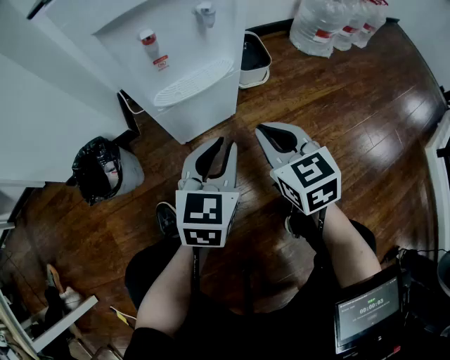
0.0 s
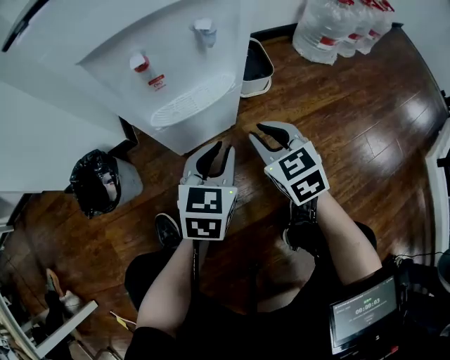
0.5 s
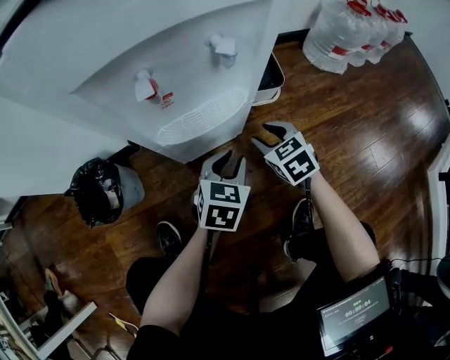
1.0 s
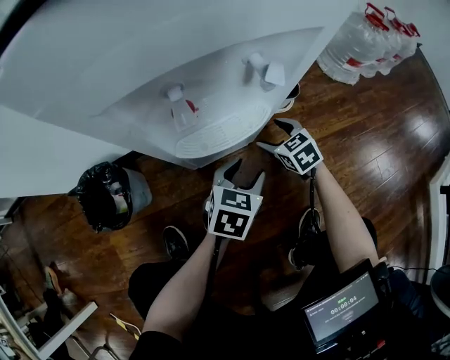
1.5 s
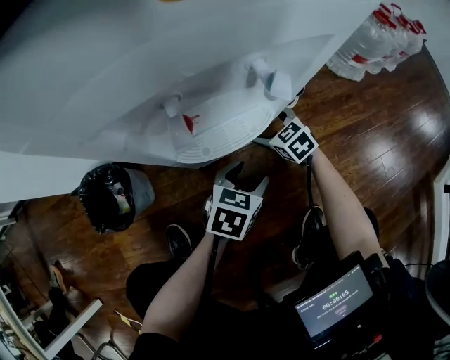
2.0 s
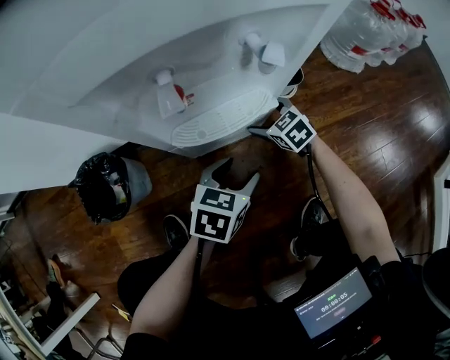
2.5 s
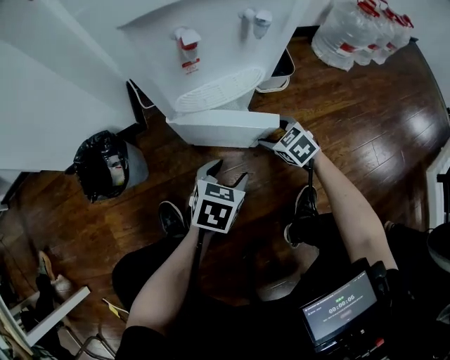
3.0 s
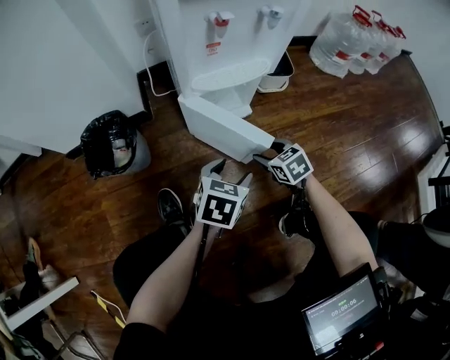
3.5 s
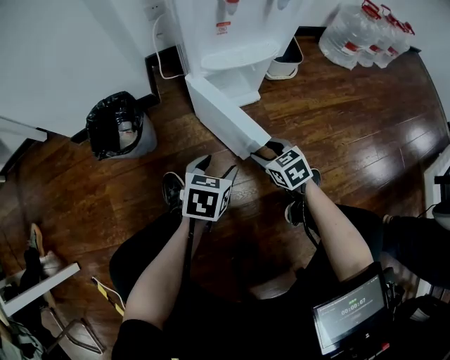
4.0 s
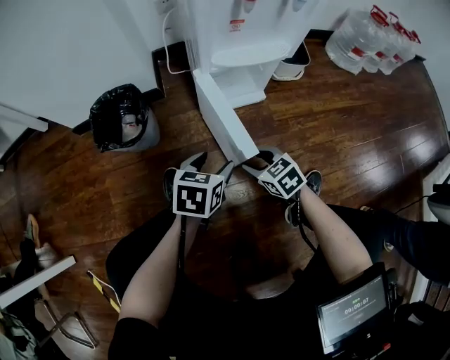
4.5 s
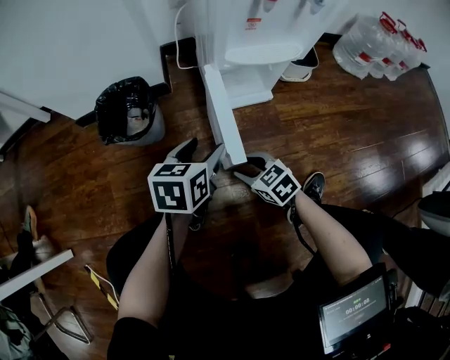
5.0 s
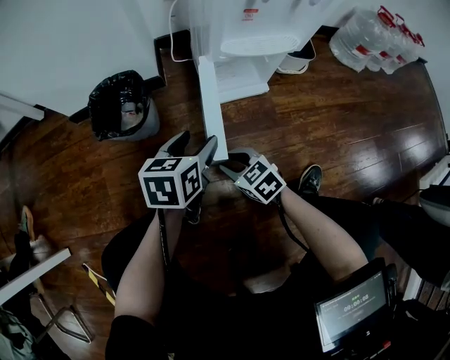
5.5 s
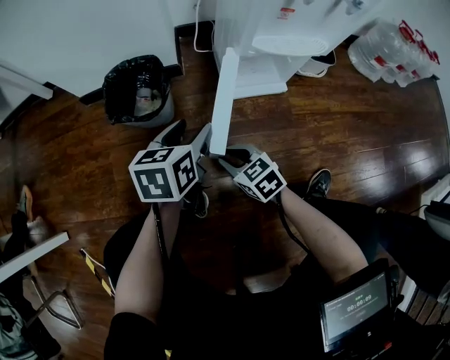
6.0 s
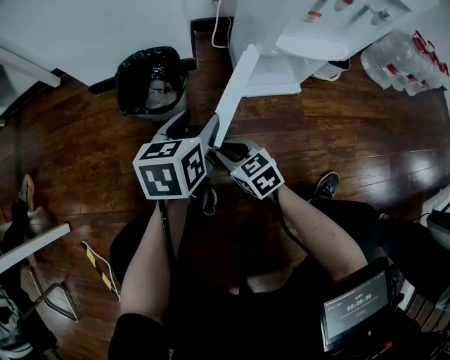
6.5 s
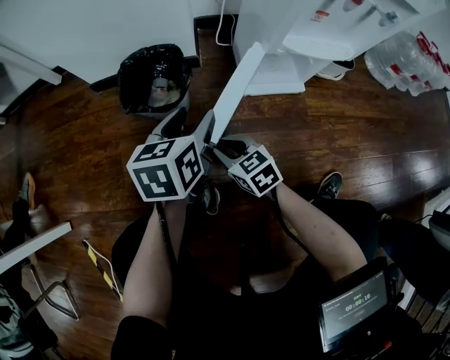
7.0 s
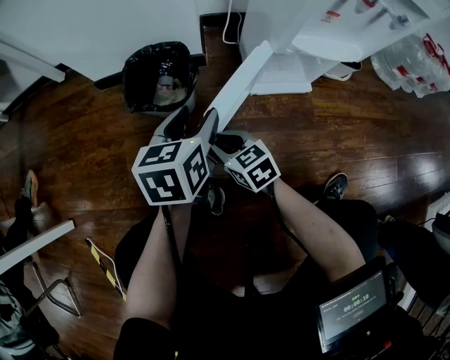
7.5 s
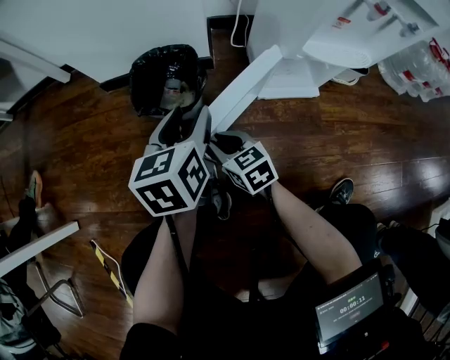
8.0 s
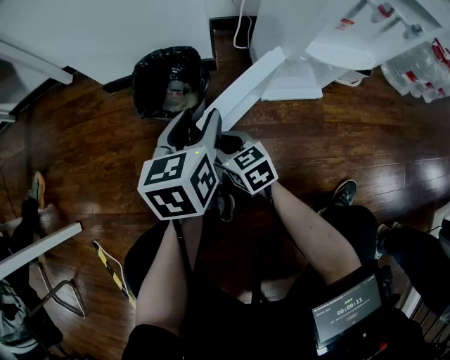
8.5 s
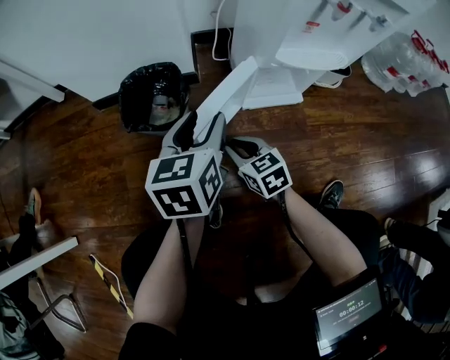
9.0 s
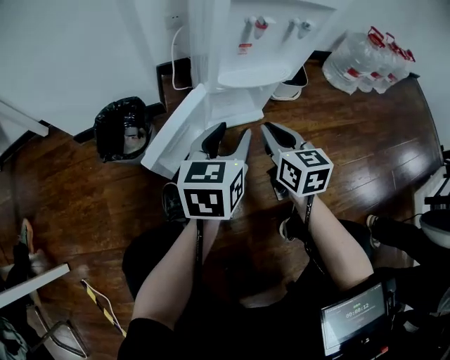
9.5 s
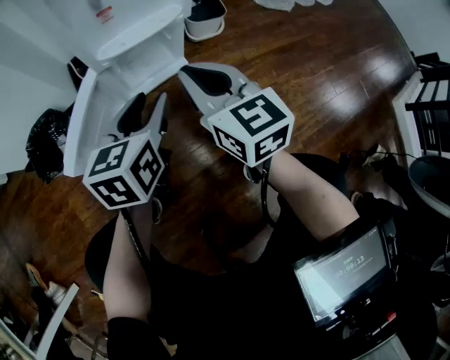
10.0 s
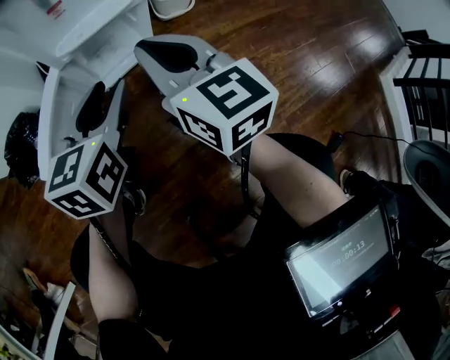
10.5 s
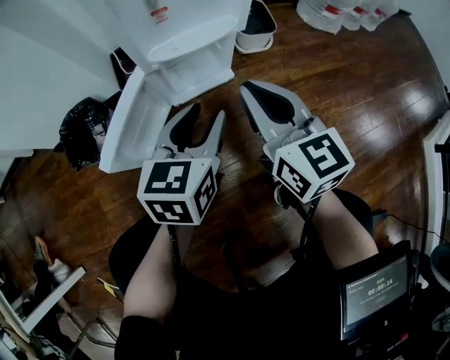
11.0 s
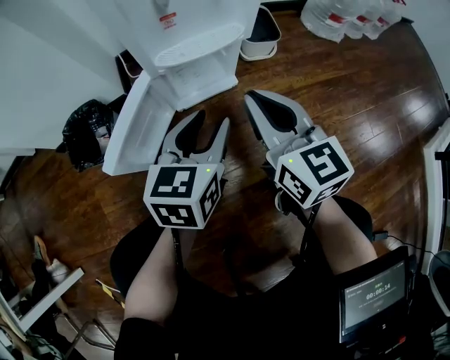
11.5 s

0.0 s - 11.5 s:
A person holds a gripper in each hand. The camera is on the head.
0.0 s - 2.0 s: The right gripper moves downward and forward, approximately 30 cm, changes its angle by approximately 30 degrees, and opens up. Meanwhile the left gripper moves downward and forward, some 15 cm, rotates some 30 degrees, and opens its fingers.
2.0 s - 4.0 s: The right gripper shifts approximately 30 cm backward, and closes its fingers. The left gripper heads backward and to the left, covering roughly 25 cm.
4.0 s - 6.0 s: The left gripper is displaced to the left, forward and upward by about 15 cm, and turns by some 30 degrees, while the right gripper moves to the left, about 20 cm.
6.0 s - 7.5 s: The right gripper goes about 10 cm to the left and forward; the left gripper goes about 5 cm to the left.
7.5 s - 9.5 s: The right gripper shifts by about 35 cm, and turns by some 40 degrees. The left gripper shifts by about 25 cm.
9.5 s - 11.5 s: The left gripper goes some 10 cm to the right. Meanwhile the right gripper travels upward and to the right by roughly 10 cm.

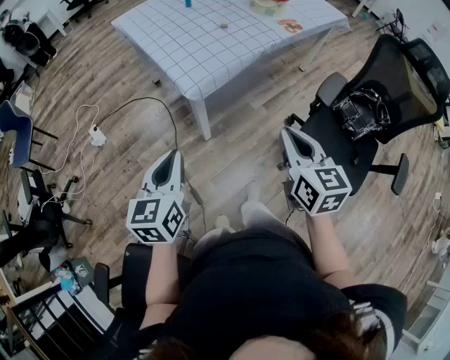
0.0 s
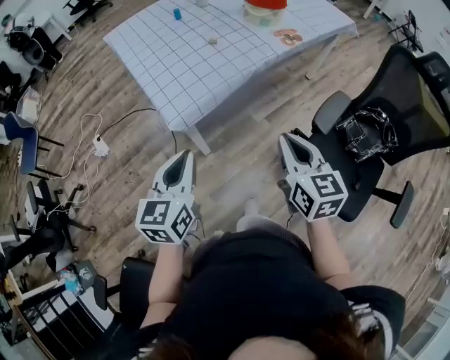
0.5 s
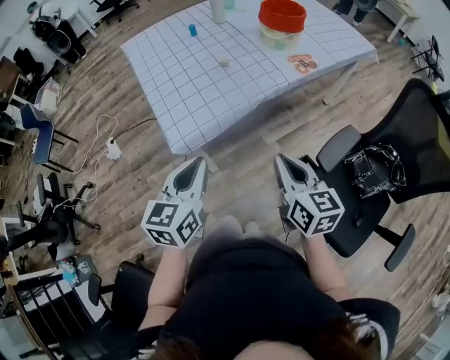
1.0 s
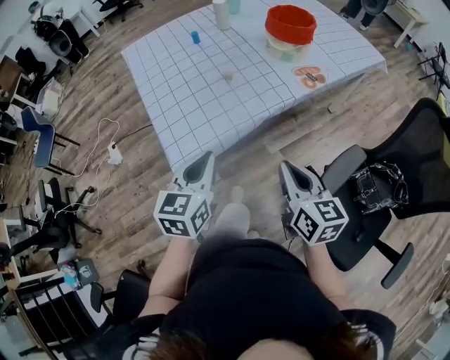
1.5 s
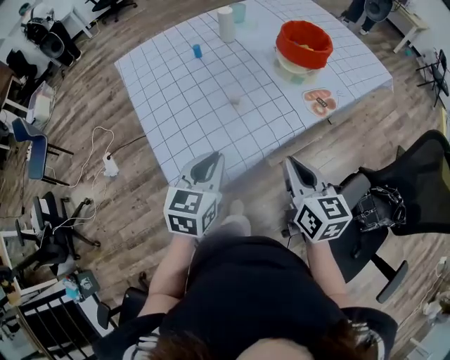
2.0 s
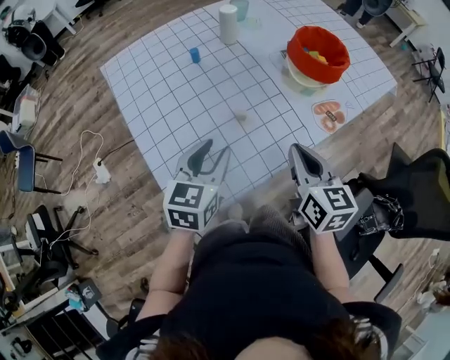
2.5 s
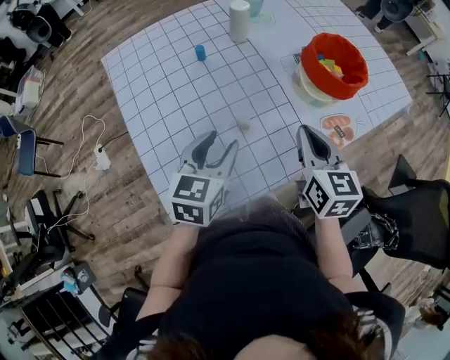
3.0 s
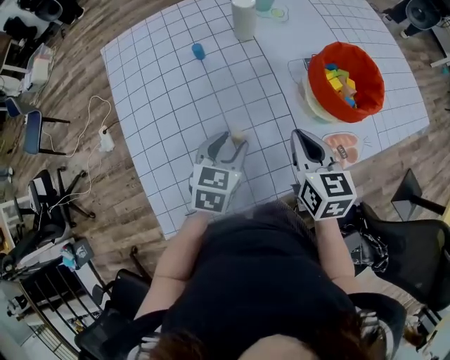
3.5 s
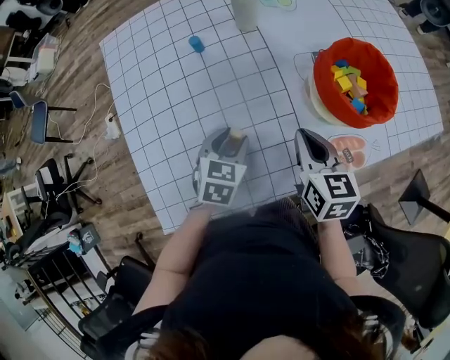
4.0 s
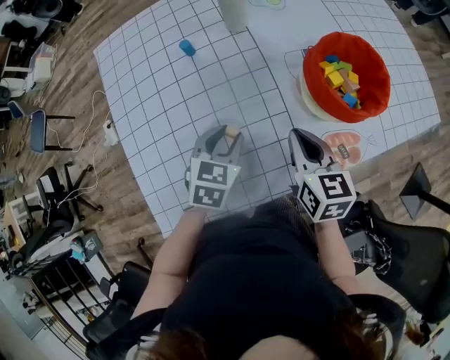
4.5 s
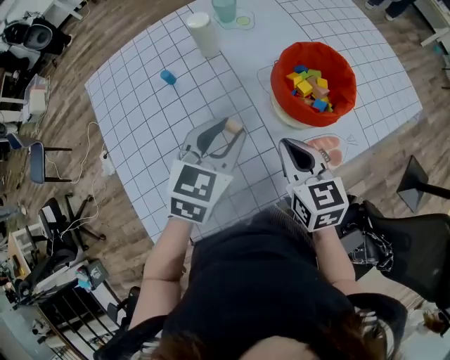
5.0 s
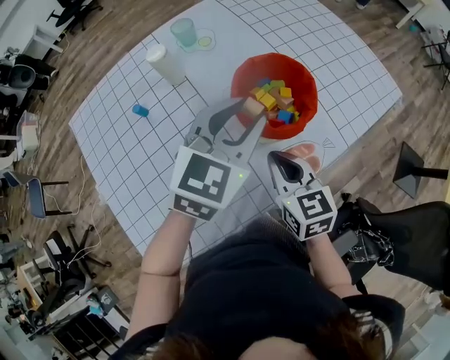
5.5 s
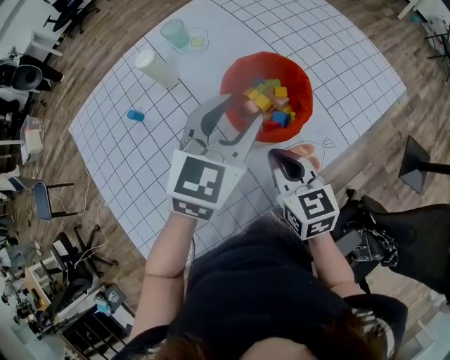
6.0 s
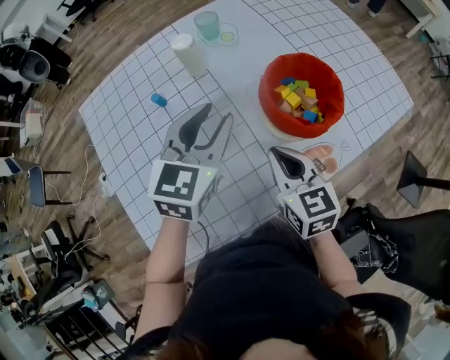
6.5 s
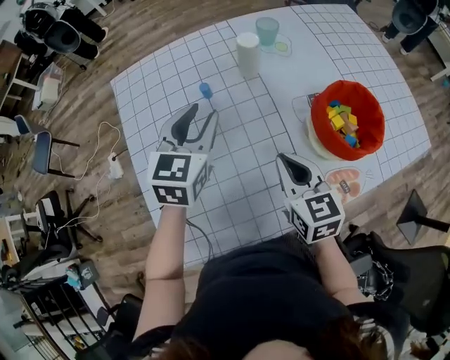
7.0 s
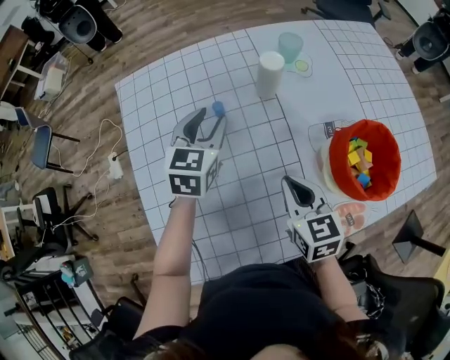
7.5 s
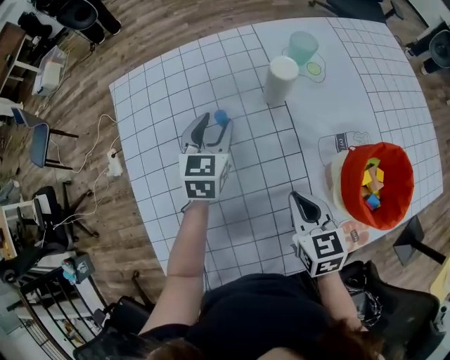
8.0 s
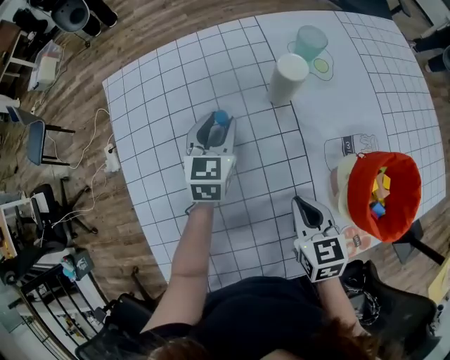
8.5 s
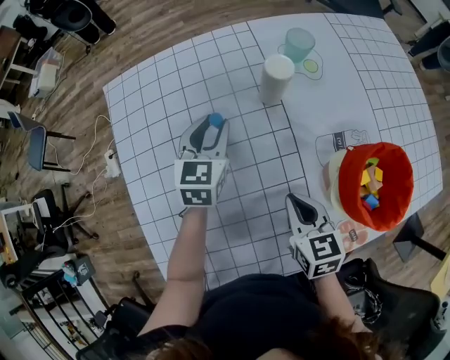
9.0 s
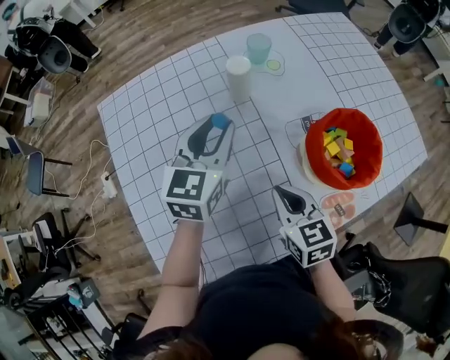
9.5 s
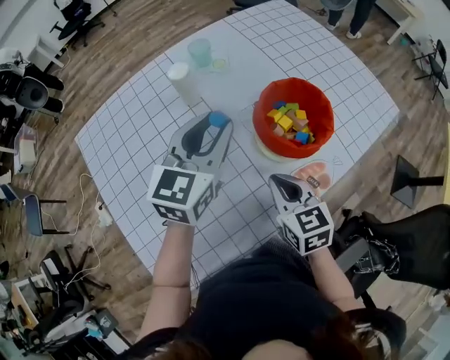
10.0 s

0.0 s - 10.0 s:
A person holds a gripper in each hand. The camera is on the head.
0.0 s - 2.0 s: The left gripper travels forward and to the right by some 40 cm, while the right gripper travels forward by roughly 35 cm.
2.0 s - 4.0 s: The right gripper moves forward, roughly 30 cm. Meanwhile the left gripper shifts approximately 30 cm forward and downward, swivels roughly 20 degrees, and opens up.
4.0 s - 6.0 s: The left gripper moves to the right, upward and forward, some 30 cm, and turns by roughly 40 degrees. Meanwhile the right gripper shifts some 10 cm to the right.
6.0 s - 8.0 s: The left gripper ends up about 40 cm from where it was, and changes its angle by roughly 40 degrees, while the right gripper moves some 20 cm, and rotates about 20 degrees.
8.0 s - 10.0 s: The right gripper travels to the right, backward and upward by about 15 cm, while the left gripper goes approximately 30 cm to the right, upward and backward, and turns by some 40 degrees.

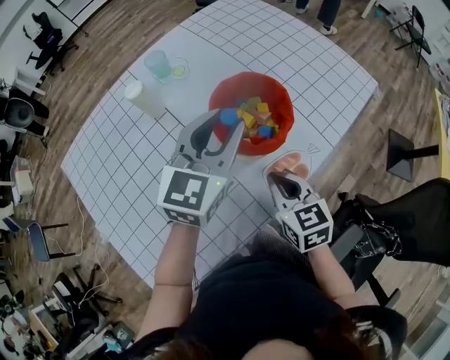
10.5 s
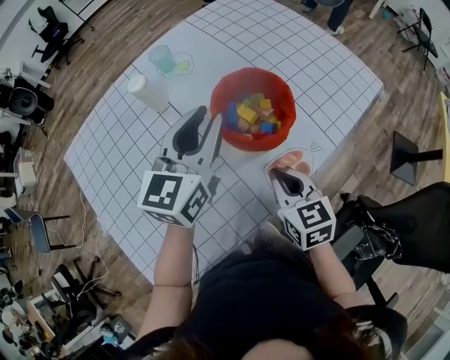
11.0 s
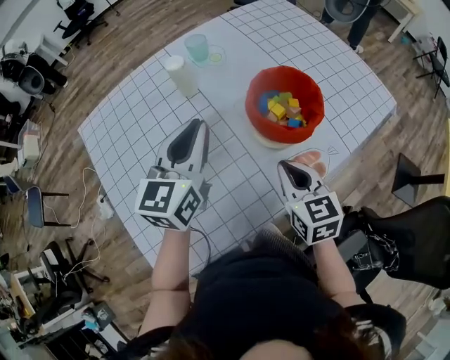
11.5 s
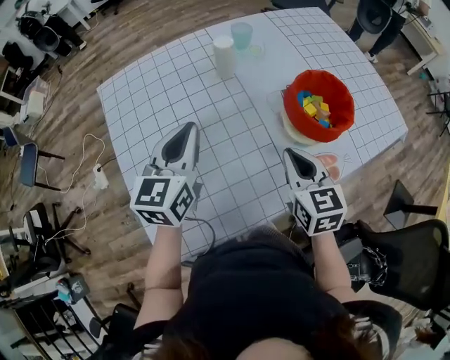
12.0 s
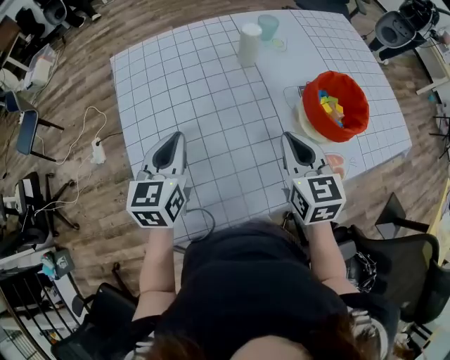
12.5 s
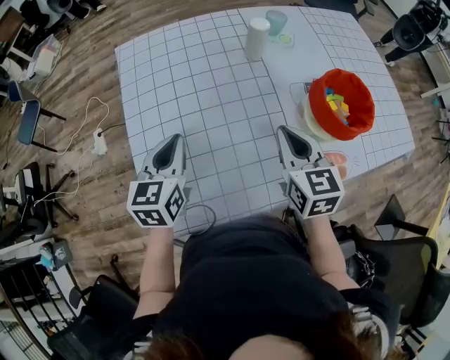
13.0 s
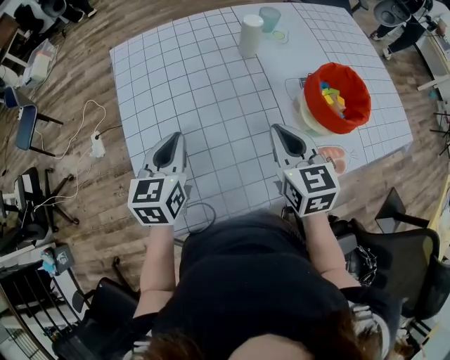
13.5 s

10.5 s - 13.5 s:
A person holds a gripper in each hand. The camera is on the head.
10.5 s - 12.0 s: The left gripper is displaced to the left by some 25 cm, swivels some 30 degrees, and closes. Meanwhile the right gripper travels to the left and upward by roughly 10 cm.
12.0 s - 13.5 s: The left gripper travels to the left, downward and backward by some 15 cm, while the right gripper shifts about 10 cm to the left.

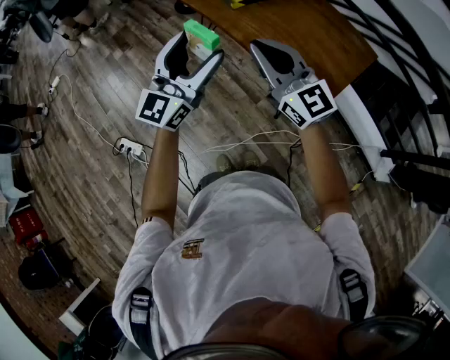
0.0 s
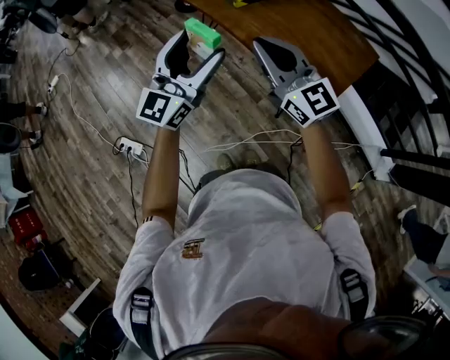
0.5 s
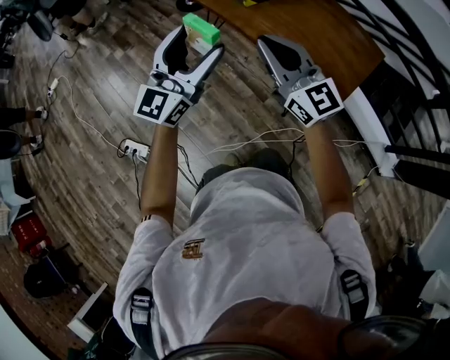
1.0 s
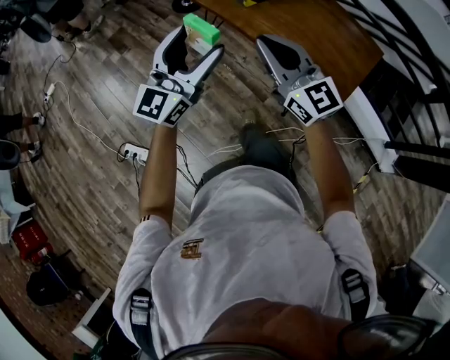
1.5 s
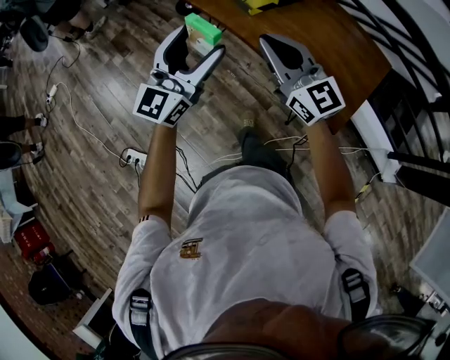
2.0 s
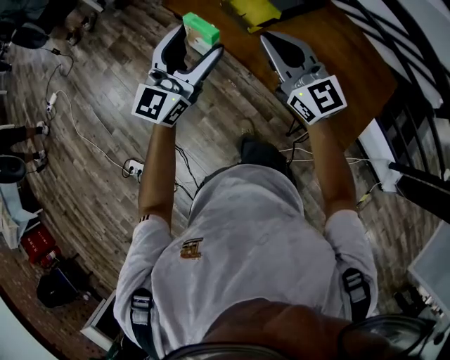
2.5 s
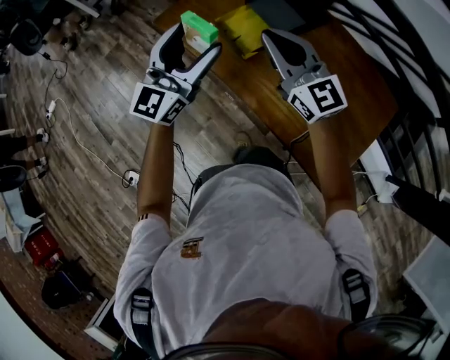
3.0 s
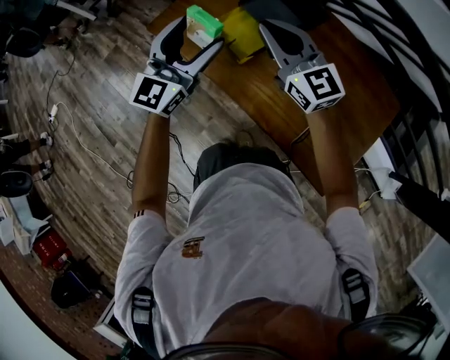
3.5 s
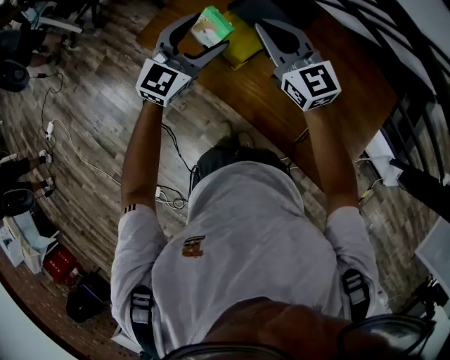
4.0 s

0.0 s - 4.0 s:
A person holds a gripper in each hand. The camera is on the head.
0.0 s - 2.0 s: The two grippers go about 15 cm forward and to the left.
2.0 s - 4.0 s: The two grippers travel together, forward, some 50 cm. The left gripper changes its angle by about 30 degrees.
